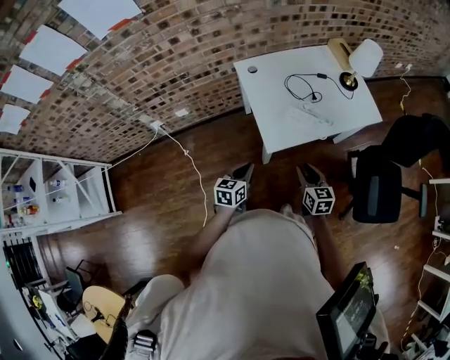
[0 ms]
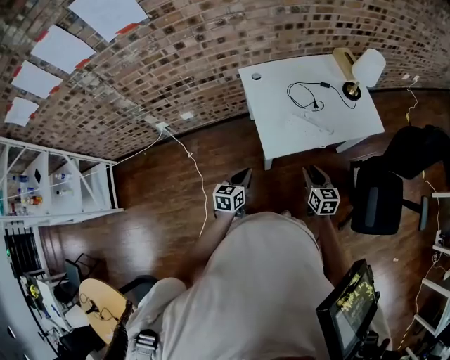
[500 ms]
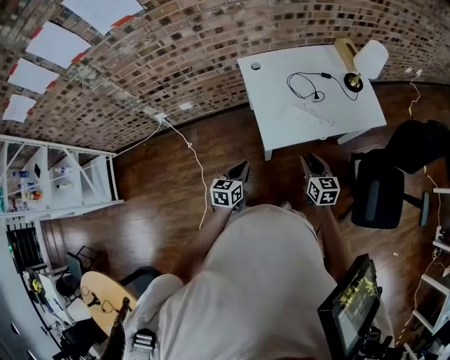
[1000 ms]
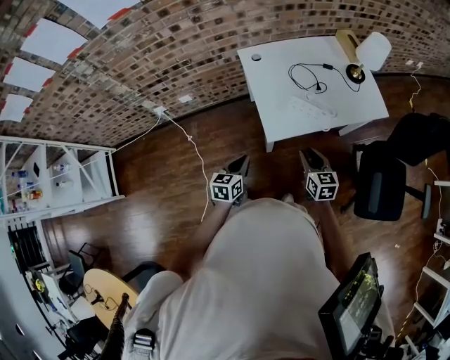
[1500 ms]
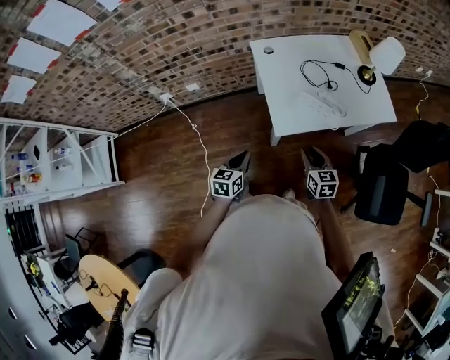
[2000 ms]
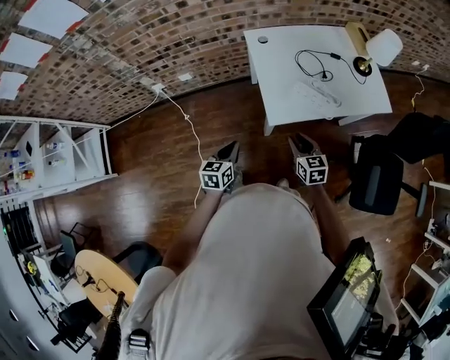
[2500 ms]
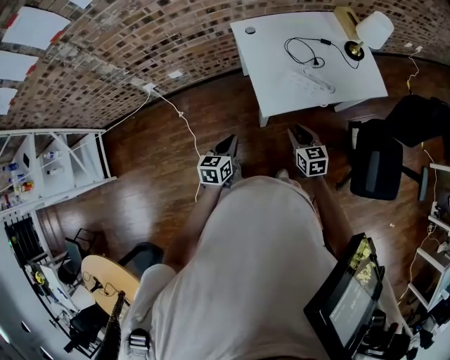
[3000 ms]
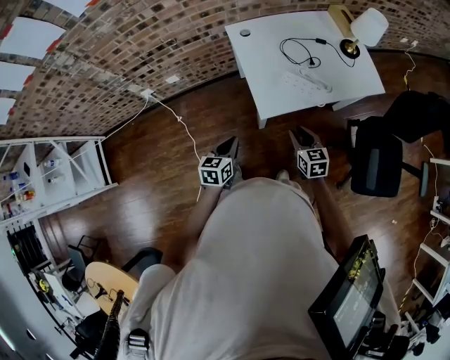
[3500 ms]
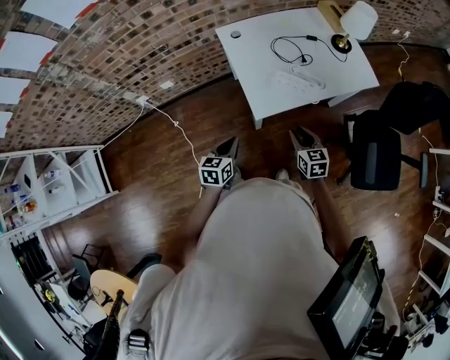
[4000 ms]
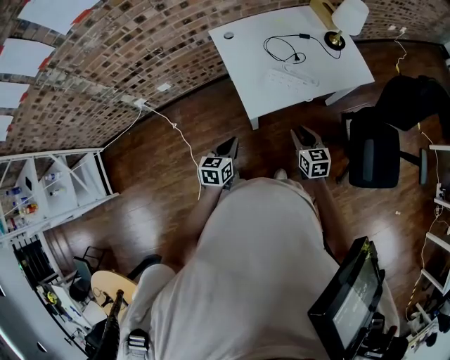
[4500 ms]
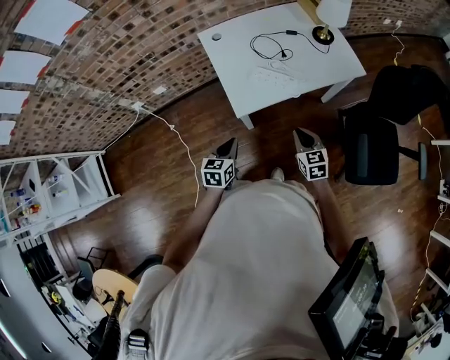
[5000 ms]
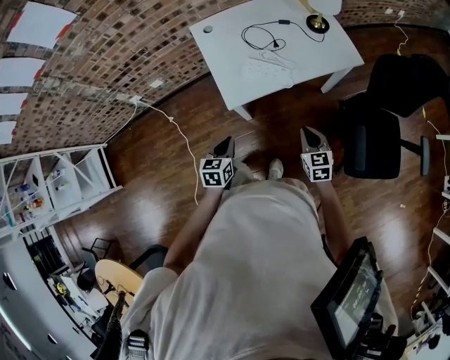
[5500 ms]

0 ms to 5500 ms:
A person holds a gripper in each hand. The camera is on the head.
0 ms to 2000 ms: There are only small adjustments of the grippers.
2000 ms to 3500 ms: There are only small adjustments of the grippers.
3500 ms to 5500 ms: The grippers both shift to the right by roughly 15 cm. The right gripper closes up.

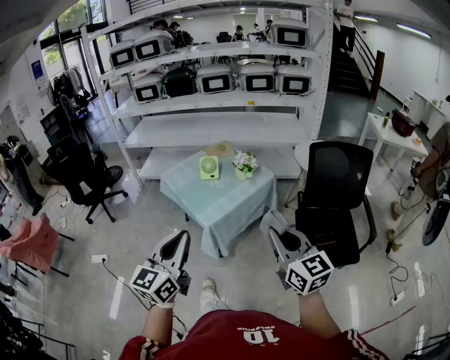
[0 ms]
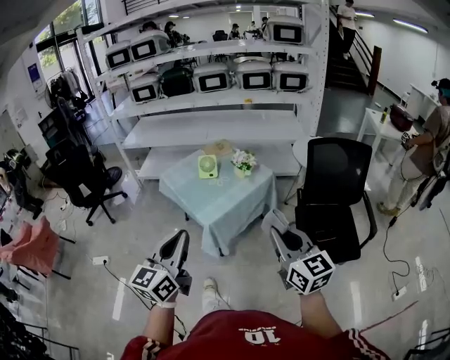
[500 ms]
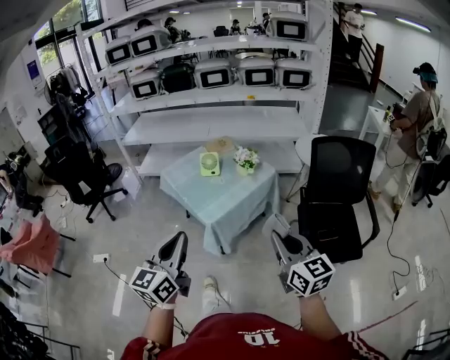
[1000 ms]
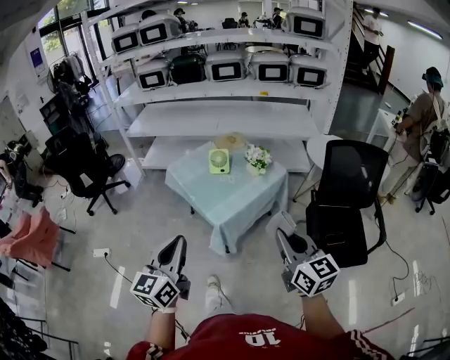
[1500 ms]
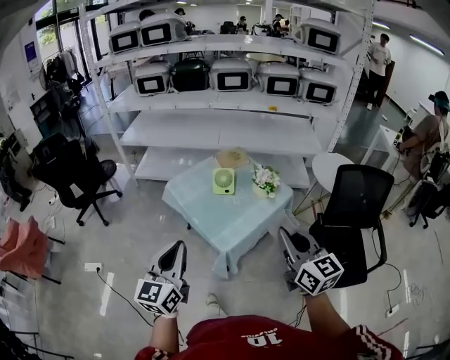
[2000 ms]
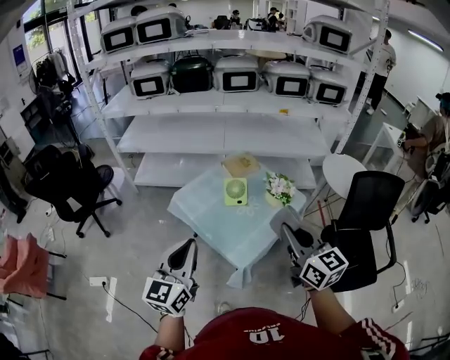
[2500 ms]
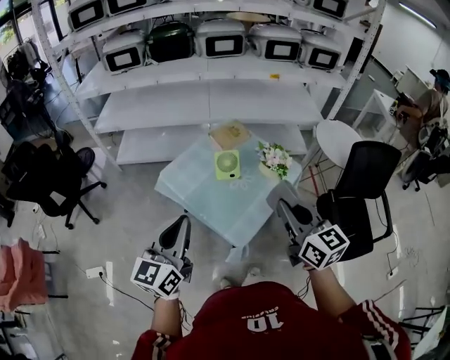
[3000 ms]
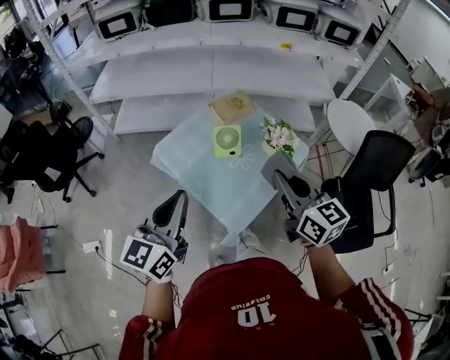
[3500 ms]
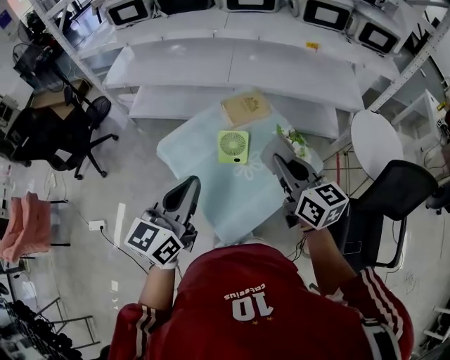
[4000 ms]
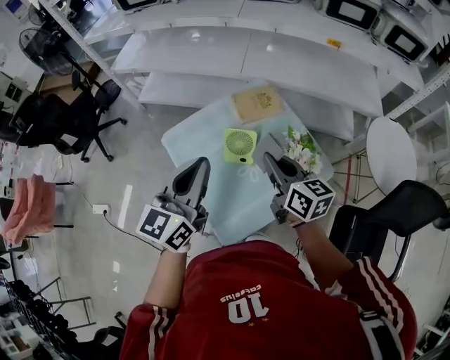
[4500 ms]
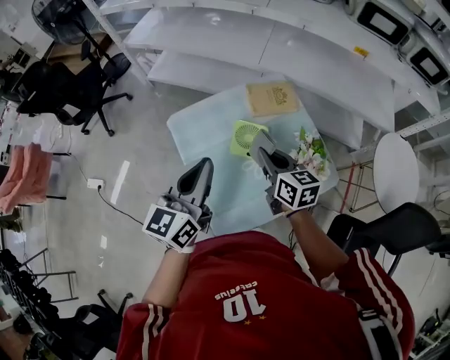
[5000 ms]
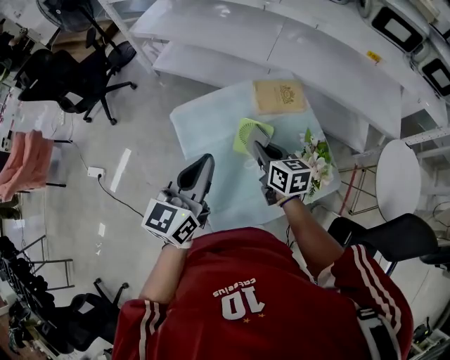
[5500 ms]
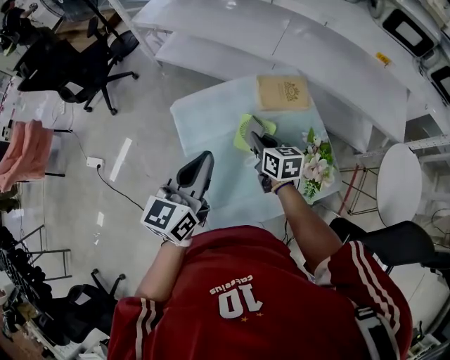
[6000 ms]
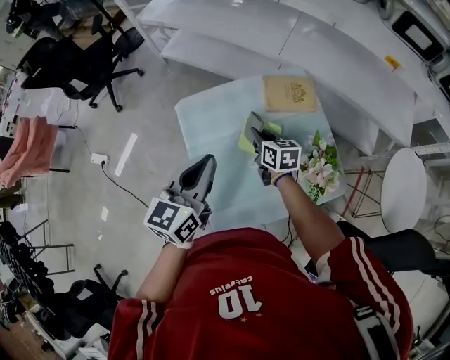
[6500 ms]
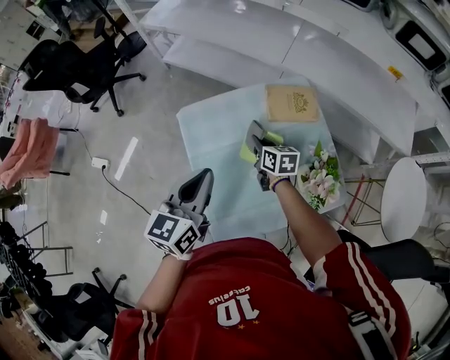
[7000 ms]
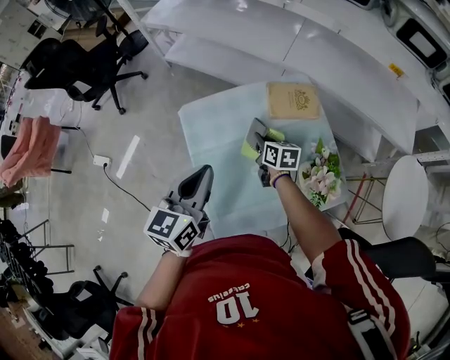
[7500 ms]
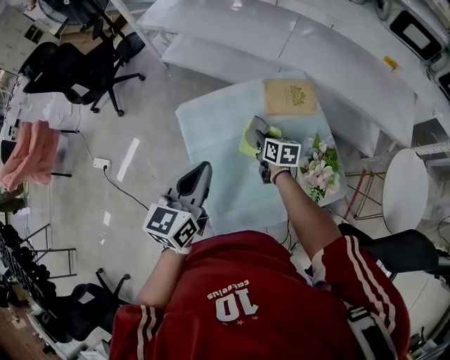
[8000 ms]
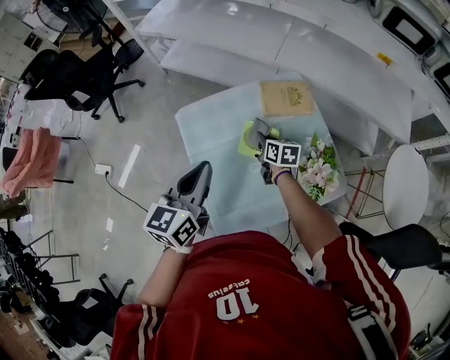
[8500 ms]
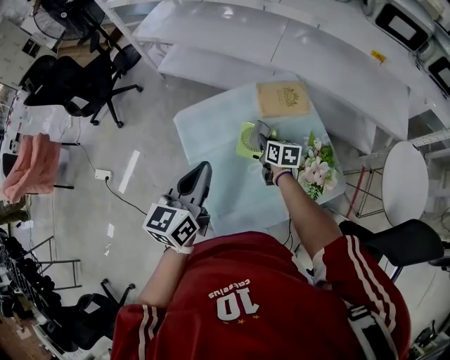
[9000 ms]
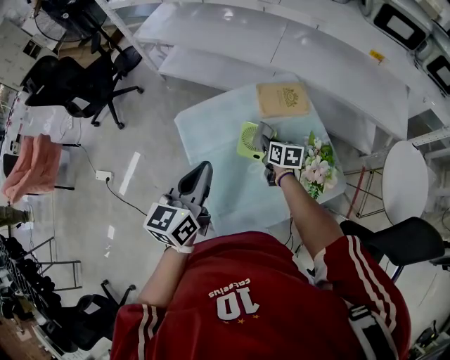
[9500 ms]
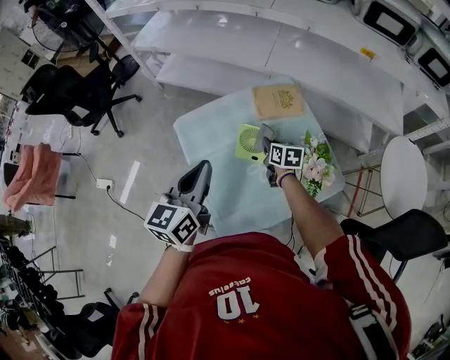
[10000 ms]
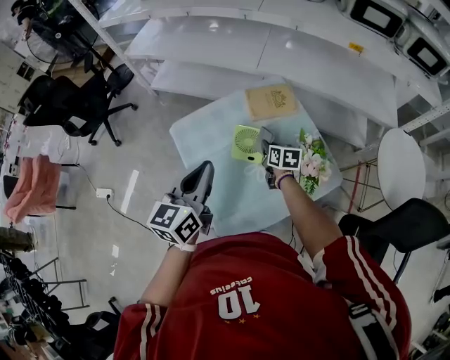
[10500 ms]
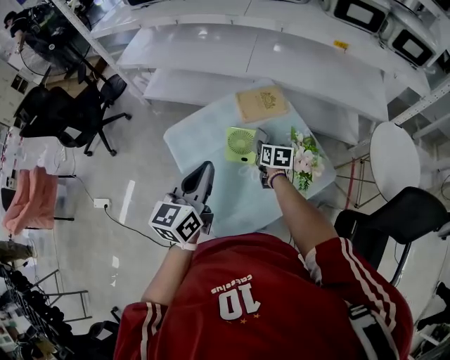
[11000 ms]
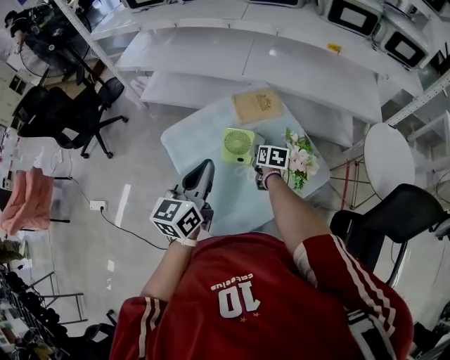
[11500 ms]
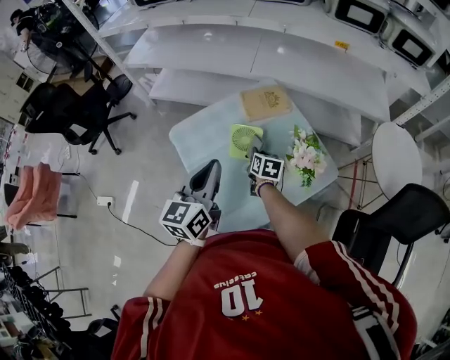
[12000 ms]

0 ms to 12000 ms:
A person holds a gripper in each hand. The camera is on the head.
0 ms to 2000 ms: The two grippers go about 25 cm forward and to the left.
2000 ms to 4000 ms: Both grippers travel together forward, about 35 cm.
4000 ms to 6000 ms: The left gripper shifts some 15 cm downward and forward. Meanwhile the right gripper heads downward and forward, covering roughly 30 cm, and rotates some 30 degrees.
6000 ms to 8000 ms: The right gripper shifts roughly 10 cm downward.
8000 ms to 10000 ms: The right gripper shifts approximately 5 cm to the right.
10000 ms to 12000 ms: The right gripper moves backward, about 5 cm.

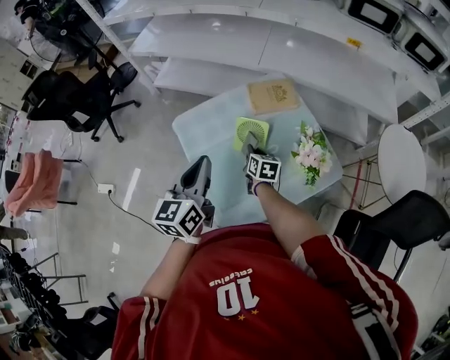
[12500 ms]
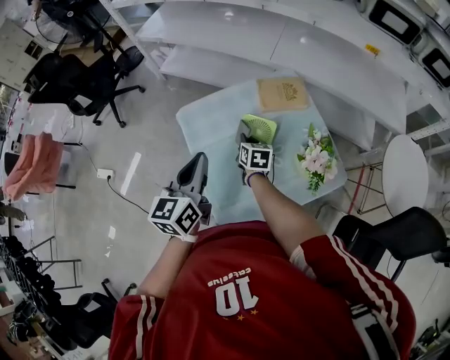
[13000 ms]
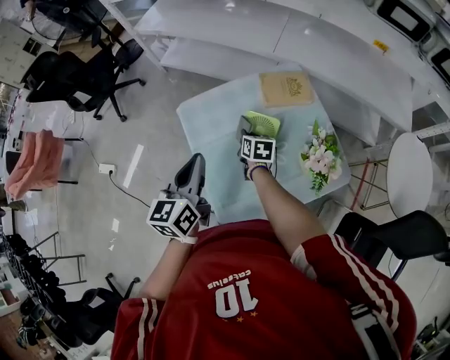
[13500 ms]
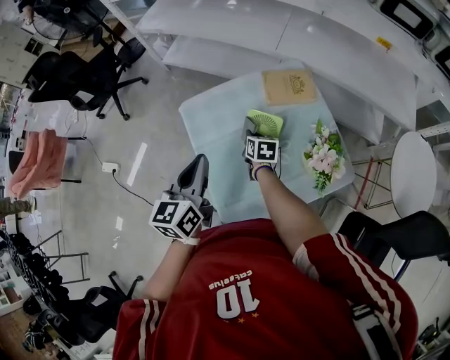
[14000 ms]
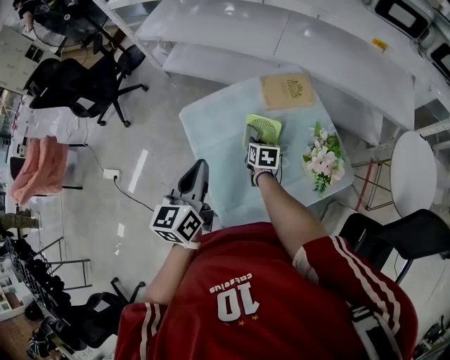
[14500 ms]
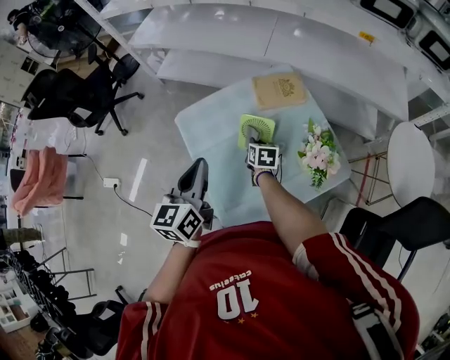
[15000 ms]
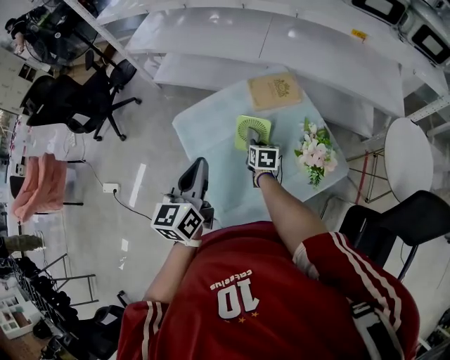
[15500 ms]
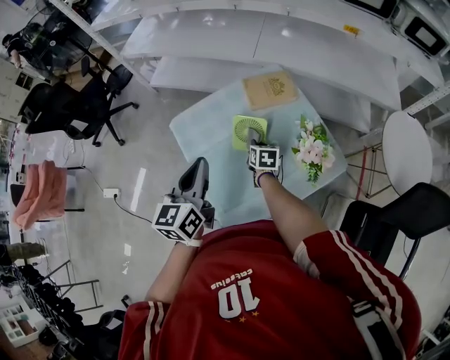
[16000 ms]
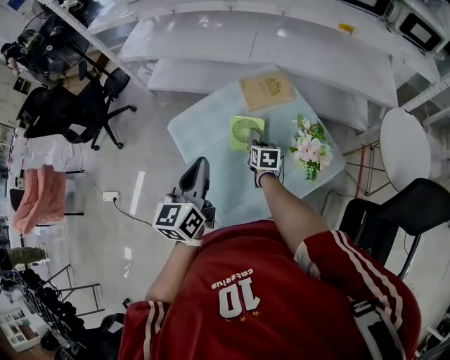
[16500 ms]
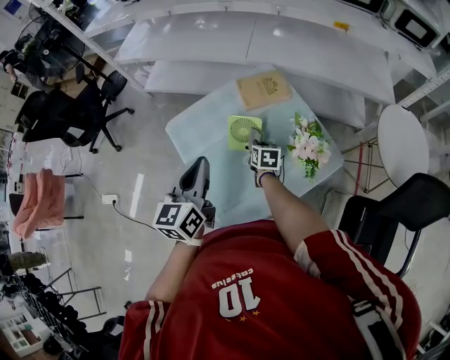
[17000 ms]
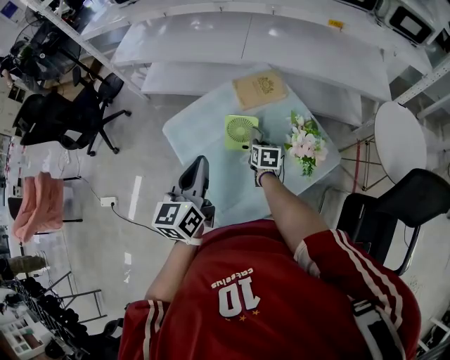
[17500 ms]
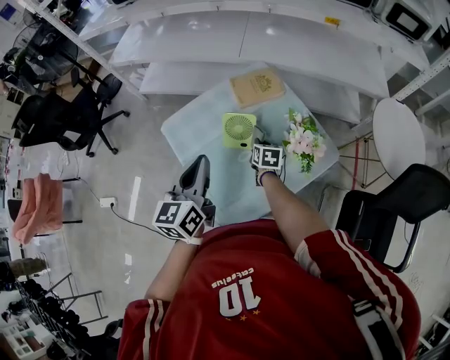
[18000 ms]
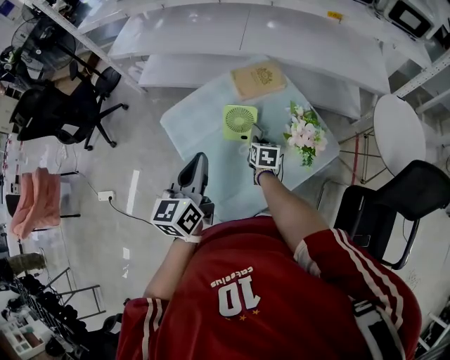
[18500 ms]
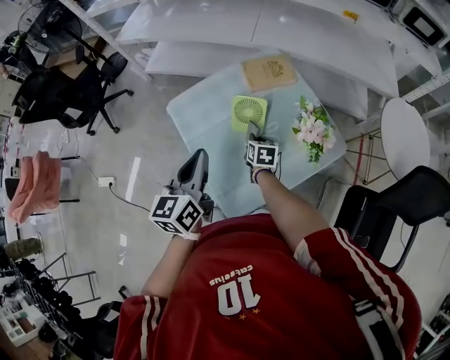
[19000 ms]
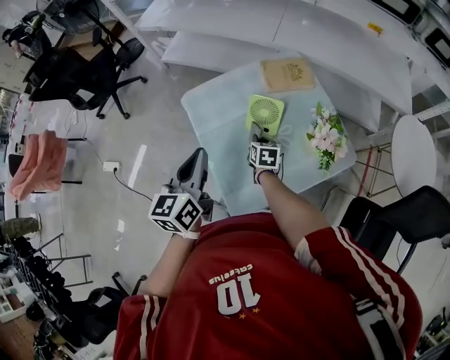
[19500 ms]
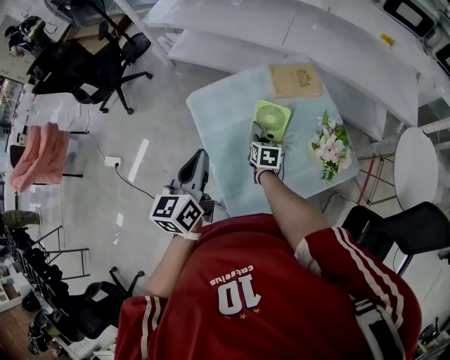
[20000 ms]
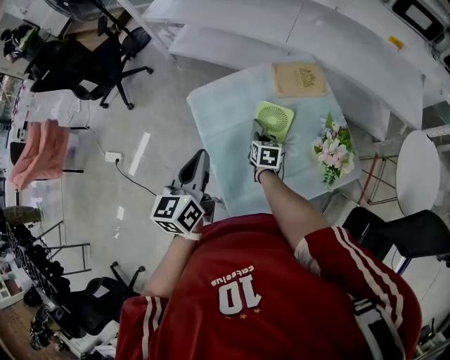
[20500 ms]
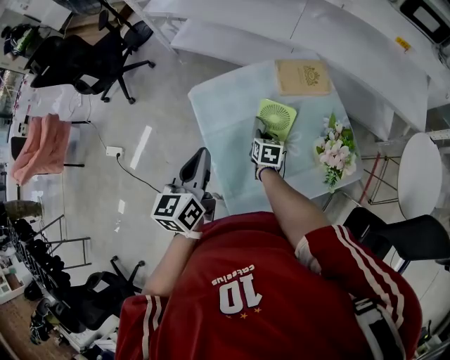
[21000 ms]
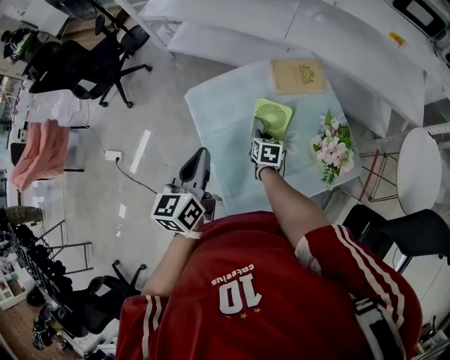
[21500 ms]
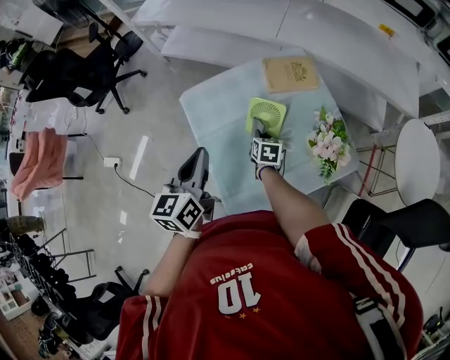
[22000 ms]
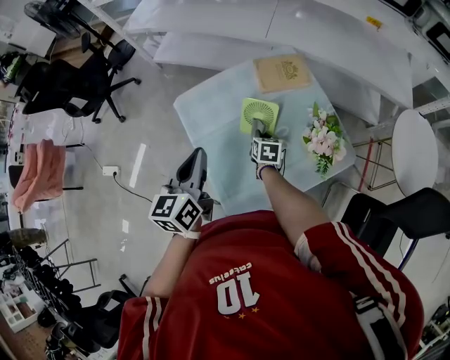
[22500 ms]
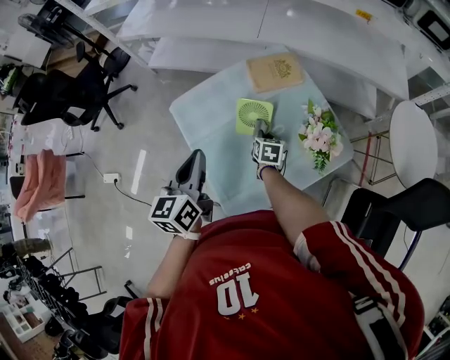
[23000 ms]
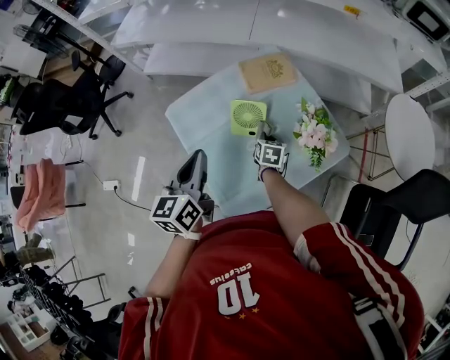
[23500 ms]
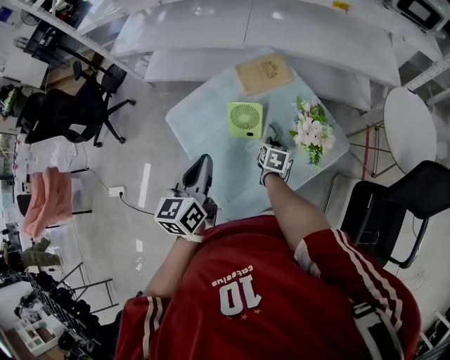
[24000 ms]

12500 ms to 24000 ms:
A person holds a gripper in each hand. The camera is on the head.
12500 ms to 14500 ms: The right gripper shifts by about 5 cm.
14500 ms to 16500 ms: The right gripper shifts roughly 5 cm to the right.
16500 ms to 18500 ms: The grippers move only a little.
18500 ms to 20000 ms: The two grippers go approximately 10 cm to the left.
20000 ms to 22000 ms: The grippers stay close to where they were, moving slightly.
22000 ms to 24000 ms: The right gripper moves to the right, some 10 cm, and swivels some 20 degrees, while the left gripper goes some 5 cm to the right.
